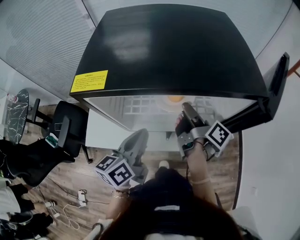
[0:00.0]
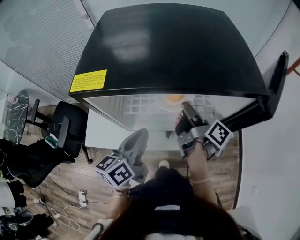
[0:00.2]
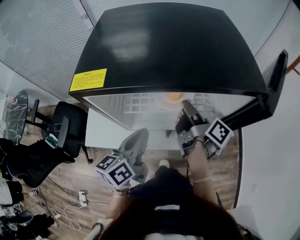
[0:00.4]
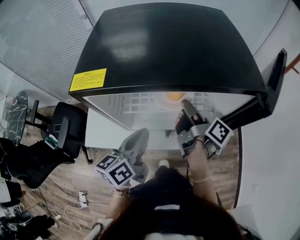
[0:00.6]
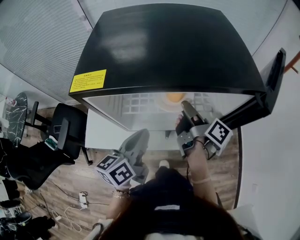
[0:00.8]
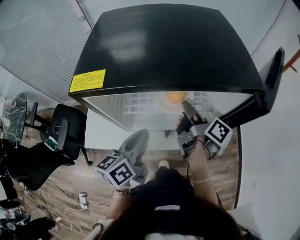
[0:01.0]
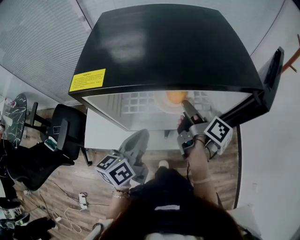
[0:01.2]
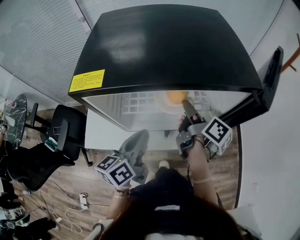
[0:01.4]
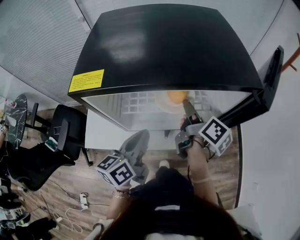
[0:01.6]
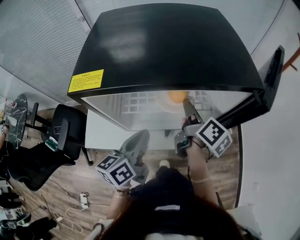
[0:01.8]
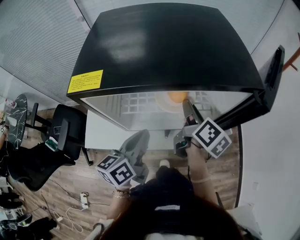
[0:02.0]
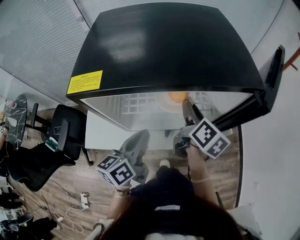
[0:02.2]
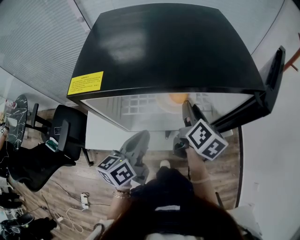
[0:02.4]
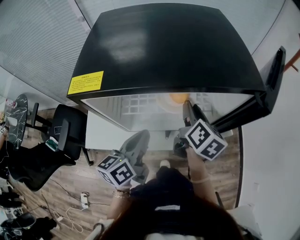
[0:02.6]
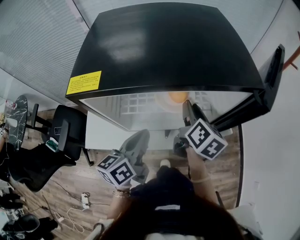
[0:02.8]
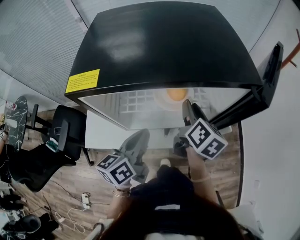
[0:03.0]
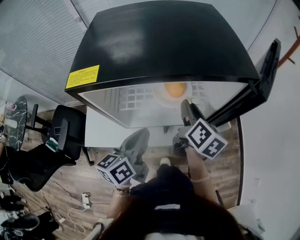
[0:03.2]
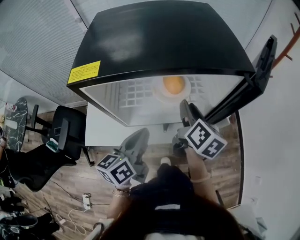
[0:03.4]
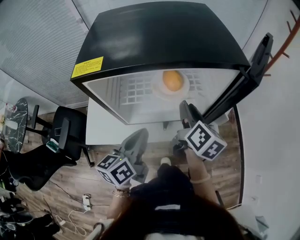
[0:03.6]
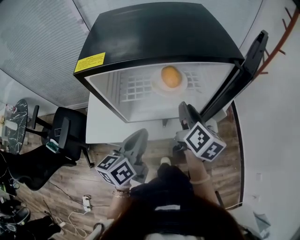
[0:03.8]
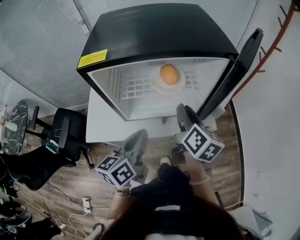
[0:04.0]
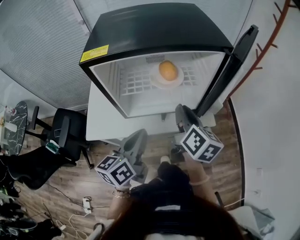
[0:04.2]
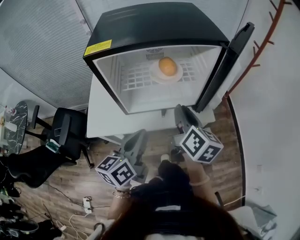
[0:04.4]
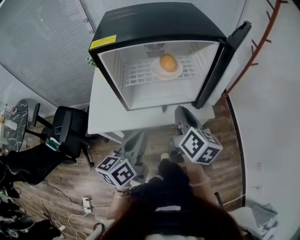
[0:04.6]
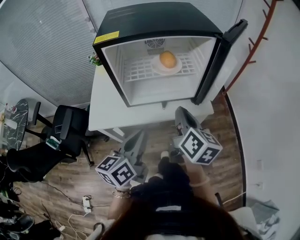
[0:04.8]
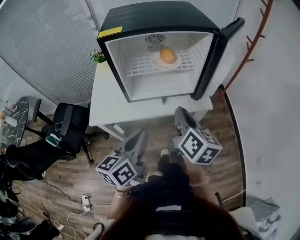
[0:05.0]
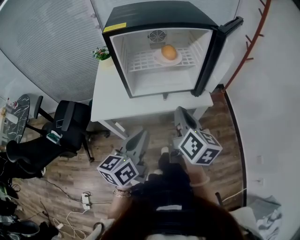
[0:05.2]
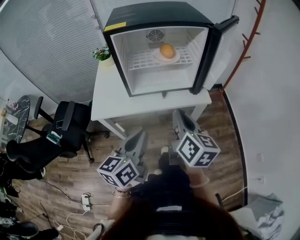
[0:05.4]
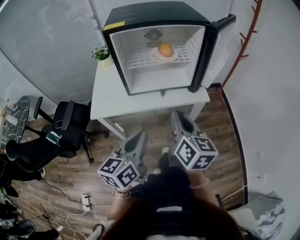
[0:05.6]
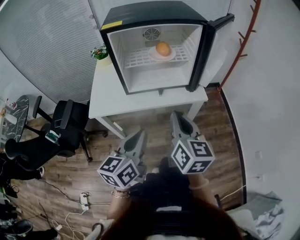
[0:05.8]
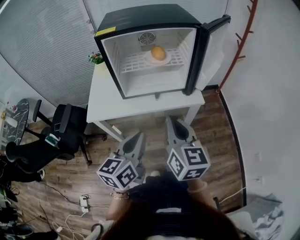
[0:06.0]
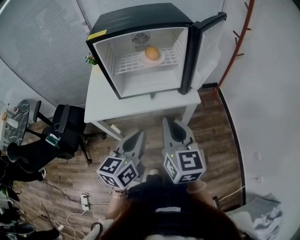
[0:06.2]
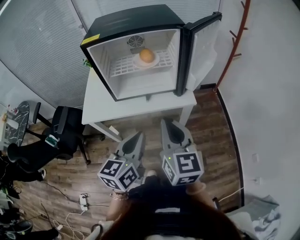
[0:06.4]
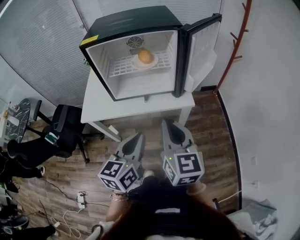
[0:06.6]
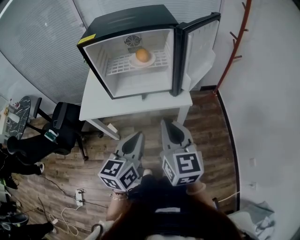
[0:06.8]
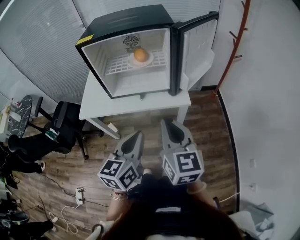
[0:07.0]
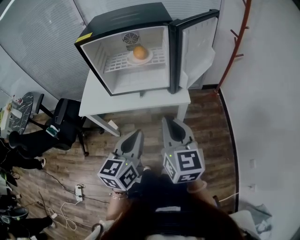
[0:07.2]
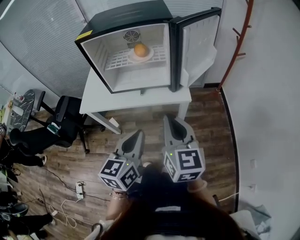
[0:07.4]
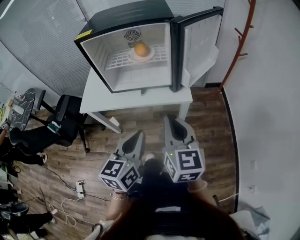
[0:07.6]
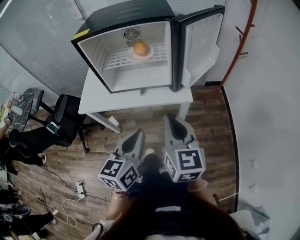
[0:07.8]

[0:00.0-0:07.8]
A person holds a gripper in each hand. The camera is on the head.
0:00.0 to 0:01.6: The right gripper swivels about 20 degrees, and opens.
0:01.6 to 0:03.2: The right gripper rotates some 20 degrees.
0:03.2 to 0:04.6: Both grippers move backward, approximately 15 cm. The right gripper closes its fingers.
0:04.6 to 0:06.2: The right gripper shifts some 15 cm backward, and swivels some 30 degrees. Meanwhile the left gripper goes approximately 10 cm backward and to the right.
0:06.2 to 0:07.8: Both grippers move to the right, about 10 cm.

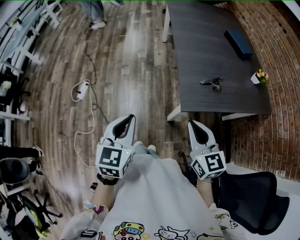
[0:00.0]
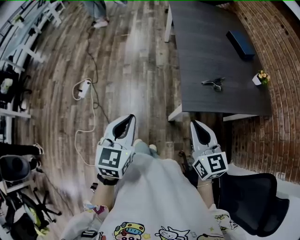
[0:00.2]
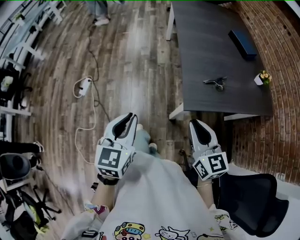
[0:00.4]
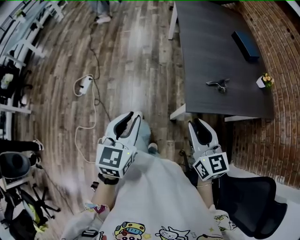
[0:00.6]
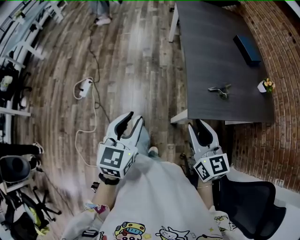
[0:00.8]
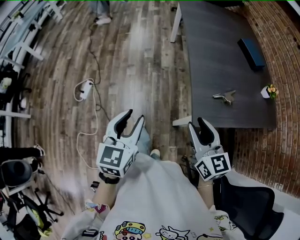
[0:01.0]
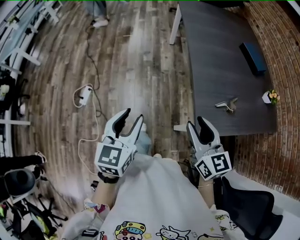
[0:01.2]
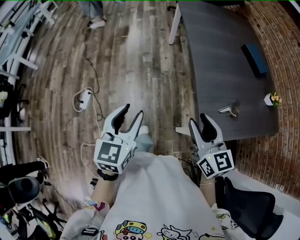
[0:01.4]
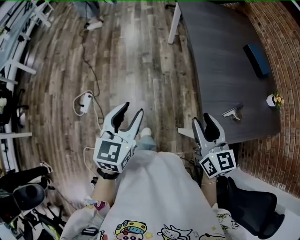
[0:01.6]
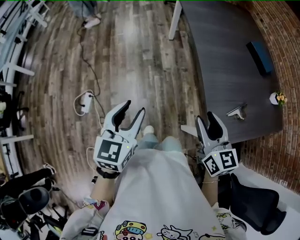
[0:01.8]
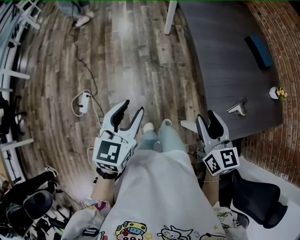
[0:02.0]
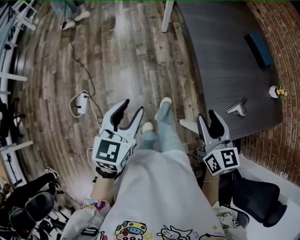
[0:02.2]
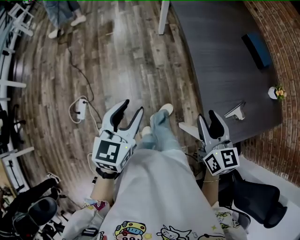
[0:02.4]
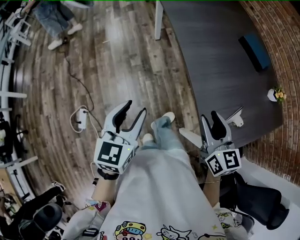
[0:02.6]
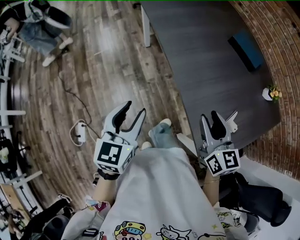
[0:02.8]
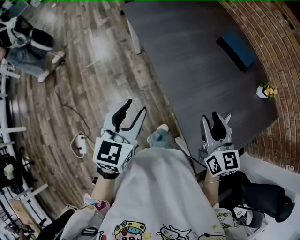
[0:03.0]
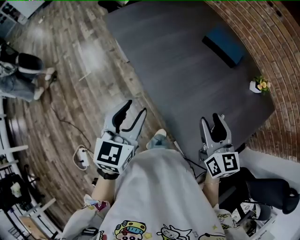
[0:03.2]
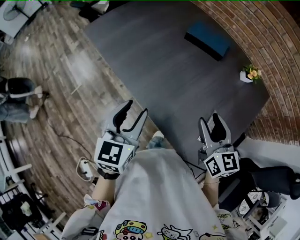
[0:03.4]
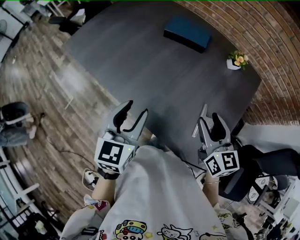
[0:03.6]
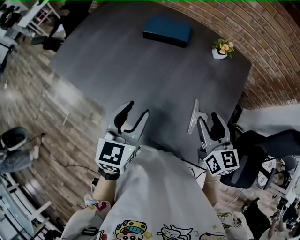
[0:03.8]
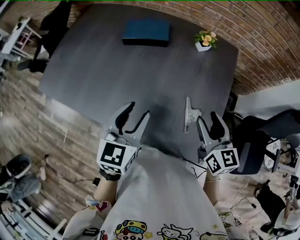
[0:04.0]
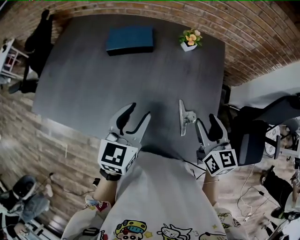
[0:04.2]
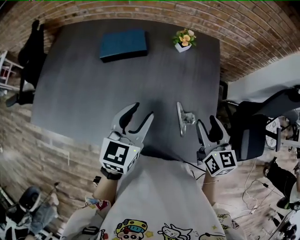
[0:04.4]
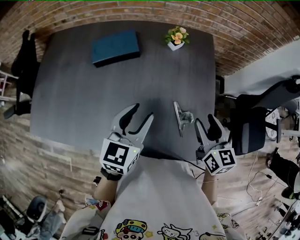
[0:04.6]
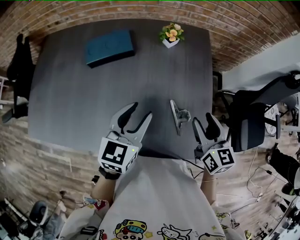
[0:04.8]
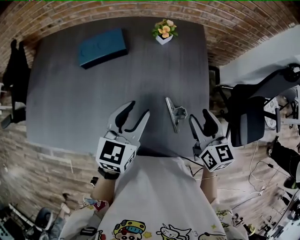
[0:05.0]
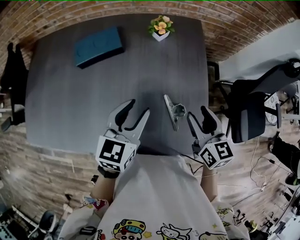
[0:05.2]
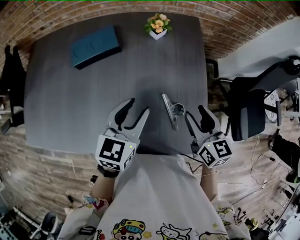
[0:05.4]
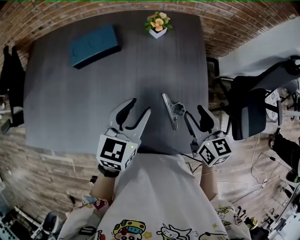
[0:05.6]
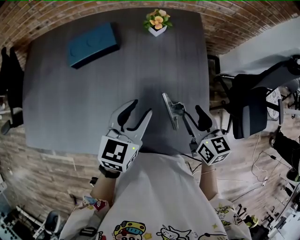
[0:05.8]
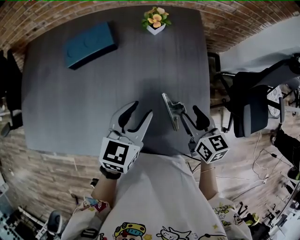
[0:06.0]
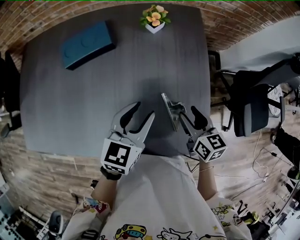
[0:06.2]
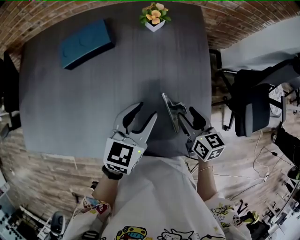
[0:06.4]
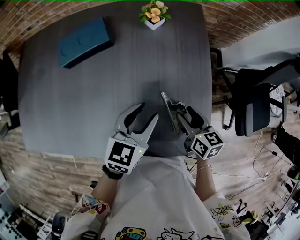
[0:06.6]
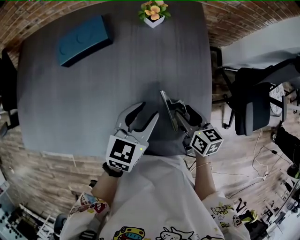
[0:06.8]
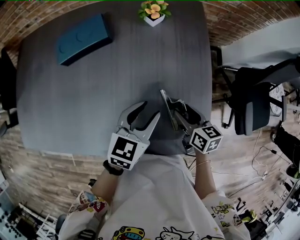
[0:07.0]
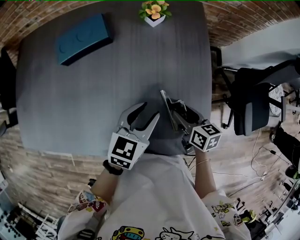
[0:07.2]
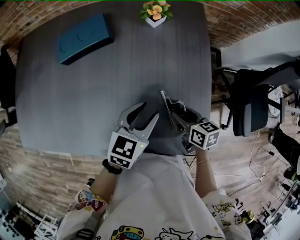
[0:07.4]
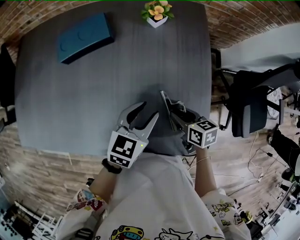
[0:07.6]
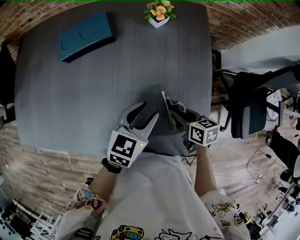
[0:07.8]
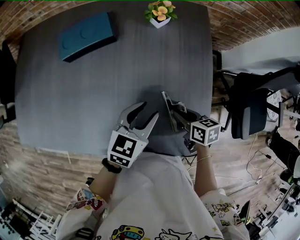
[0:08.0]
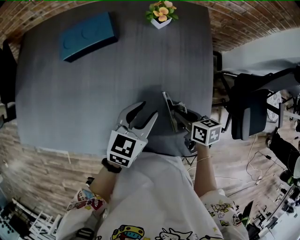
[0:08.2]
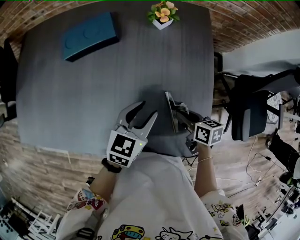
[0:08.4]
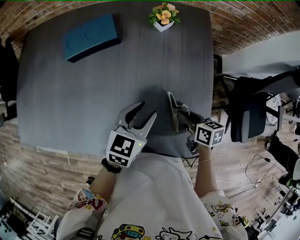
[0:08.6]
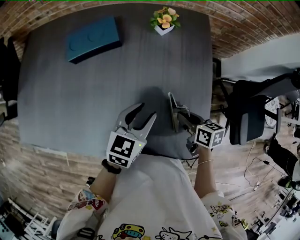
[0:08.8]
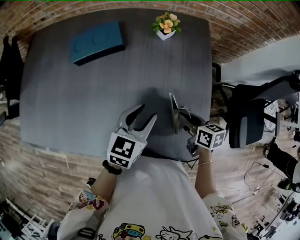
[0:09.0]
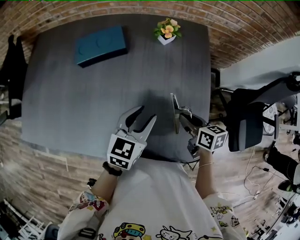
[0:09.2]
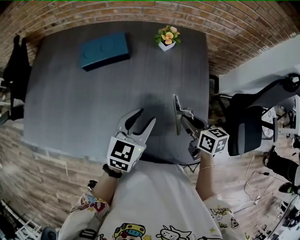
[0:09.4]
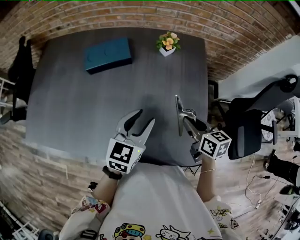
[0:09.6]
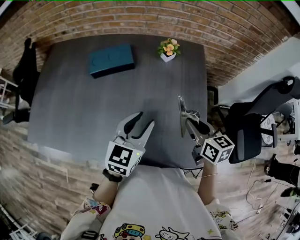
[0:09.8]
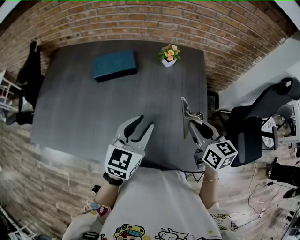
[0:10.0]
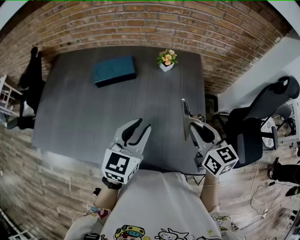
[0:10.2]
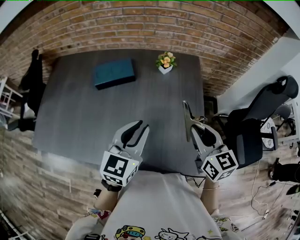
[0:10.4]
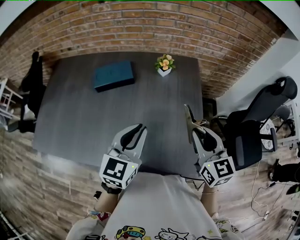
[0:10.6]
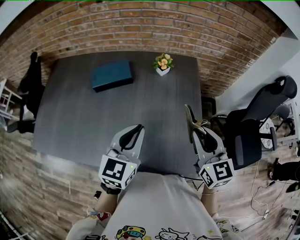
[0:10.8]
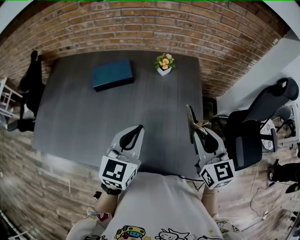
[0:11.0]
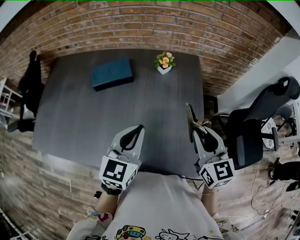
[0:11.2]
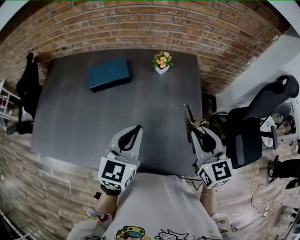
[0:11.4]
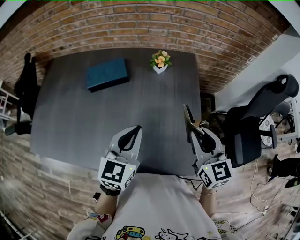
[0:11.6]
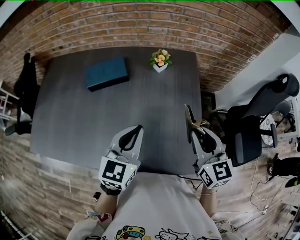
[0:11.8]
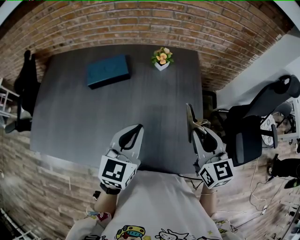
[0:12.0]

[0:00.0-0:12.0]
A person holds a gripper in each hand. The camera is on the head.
0:00.0 to 0:01.6: The left gripper moves forward and to the left, about 25 cm, and opens its fingers. Meanwhile the right gripper shifts approximately 20 cm forward, and opens.
0:01.6 to 0:03.0: The left gripper moves forward, roughly 25 cm, and rotates approximately 20 degrees; the right gripper goes about 20 cm forward and to the right, and turns by some 20 degrees.
0:03.0 to 0:04.4: The left gripper ends up approximately 35 cm from where it was, and turns by roughly 60 degrees. The right gripper shifts by roughly 20 cm, and swivels approximately 60 degrees.
0:04.4 to 0:06.0: The right gripper goes roughly 10 cm downward. The left gripper moves to the right and downward, approximately 10 cm.
0:06.0 to 0:07.6: The left gripper is displaced downward by roughly 5 cm; the right gripper goes some 10 cm downward, and changes its angle by some 20 degrees.
0:07.6 to 0:09.0: The grippers make only small movements.
0:09.0 to 0:10.4: The right gripper heads upward, covering about 20 cm, and swivels approximately 40 degrees. Meanwhile the left gripper moves upward, some 15 cm, and closes its fingers.
0:10.4 to 0:12.0: The grippers stay close to where they were, moving slightly.

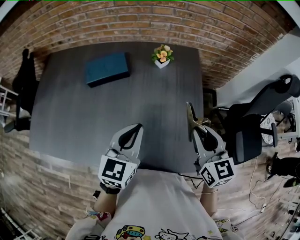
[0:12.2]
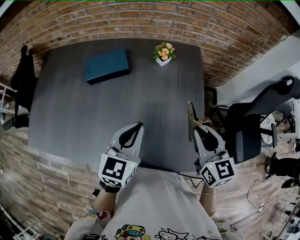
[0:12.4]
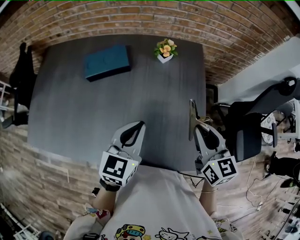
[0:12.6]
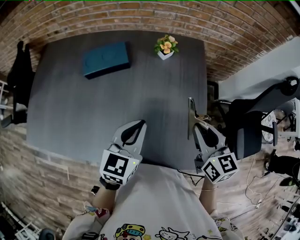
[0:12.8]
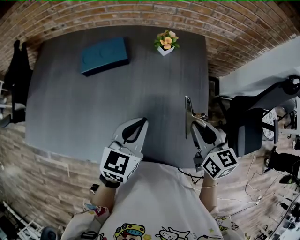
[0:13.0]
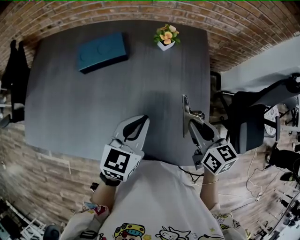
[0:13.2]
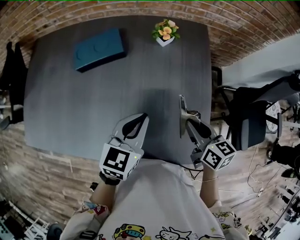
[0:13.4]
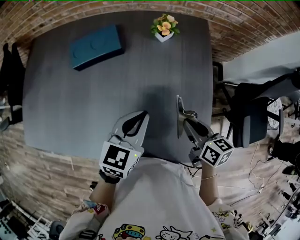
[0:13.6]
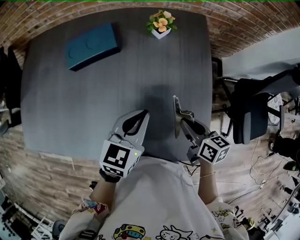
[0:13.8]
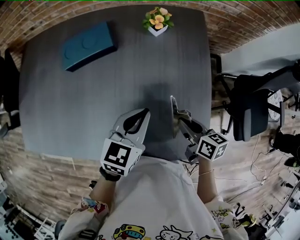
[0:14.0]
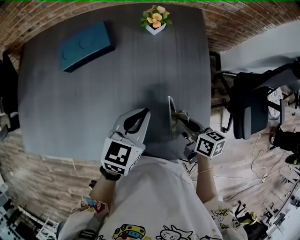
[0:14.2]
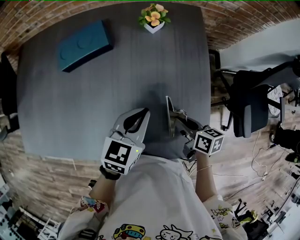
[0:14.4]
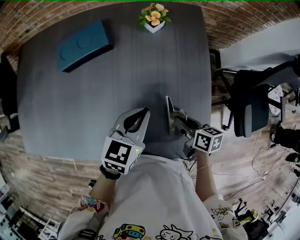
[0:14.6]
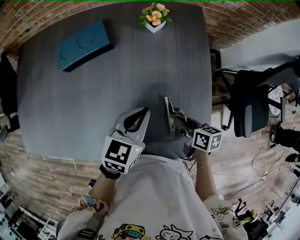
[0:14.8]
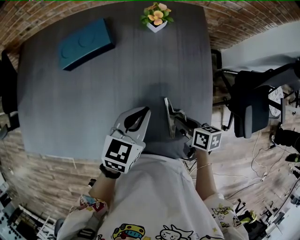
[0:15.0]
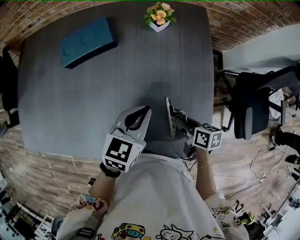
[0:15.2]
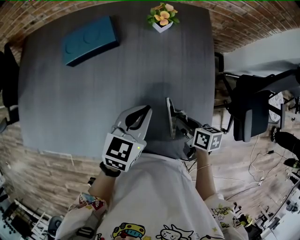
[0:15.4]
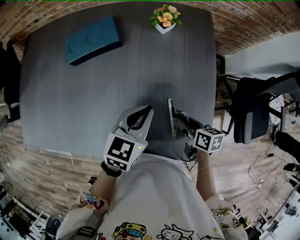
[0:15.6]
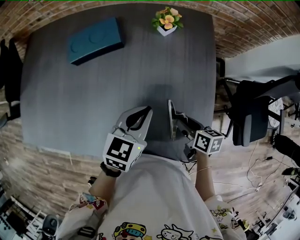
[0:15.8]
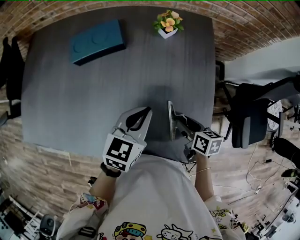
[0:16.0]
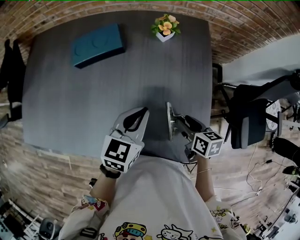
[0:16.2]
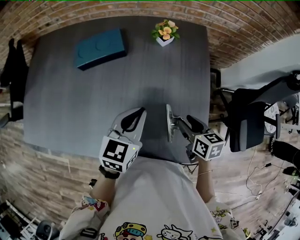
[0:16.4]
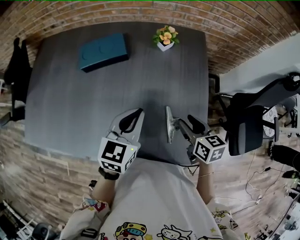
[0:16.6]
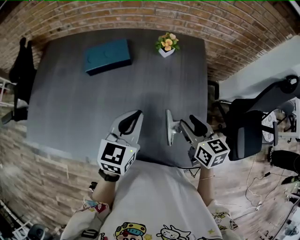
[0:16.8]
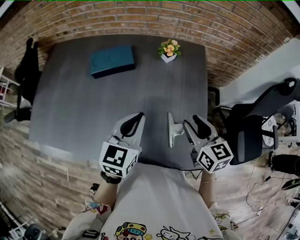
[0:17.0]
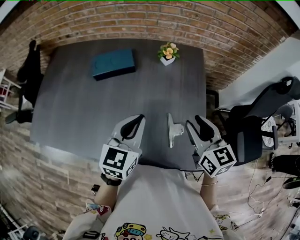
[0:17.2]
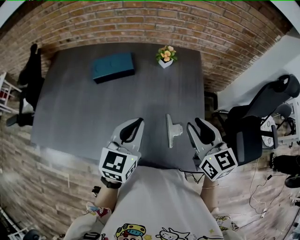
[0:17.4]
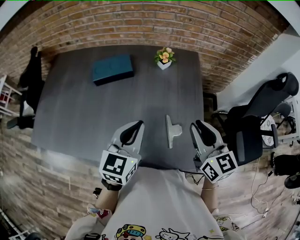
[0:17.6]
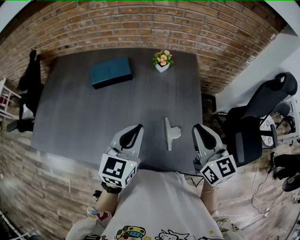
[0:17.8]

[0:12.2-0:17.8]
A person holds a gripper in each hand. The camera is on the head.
0:12.2 to 0:13.6: The right gripper shifts roughly 15 cm downward, and swivels some 40 degrees. The left gripper is displaced downward by about 5 cm.
0:13.6 to 0:15.0: The right gripper is displaced downward by about 10 cm.
0:15.0 to 0:16.4: The right gripper is displaced upward by about 5 cm, swivels approximately 20 degrees, and opens up.
0:16.4 to 0:17.8: The left gripper moves upward and backward, approximately 10 cm. The right gripper shifts roughly 20 cm upward, changes its angle by about 40 degrees, and closes its fingers.
